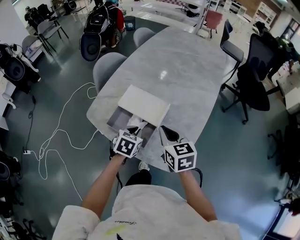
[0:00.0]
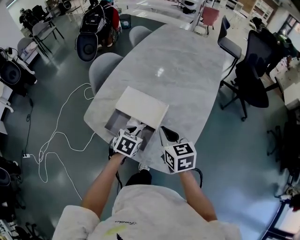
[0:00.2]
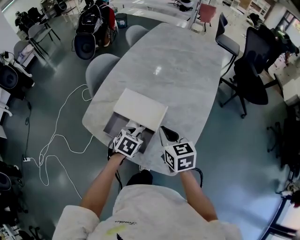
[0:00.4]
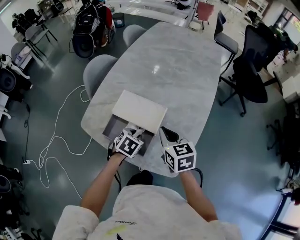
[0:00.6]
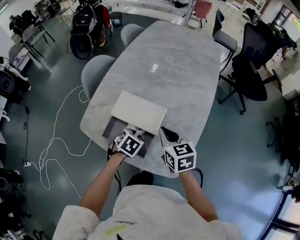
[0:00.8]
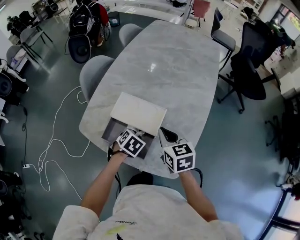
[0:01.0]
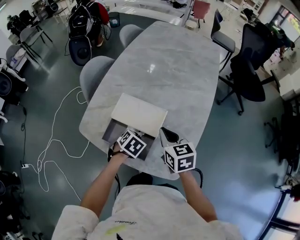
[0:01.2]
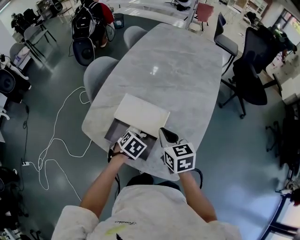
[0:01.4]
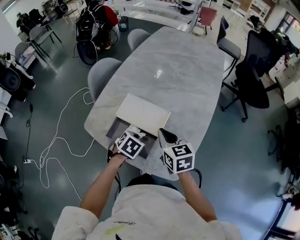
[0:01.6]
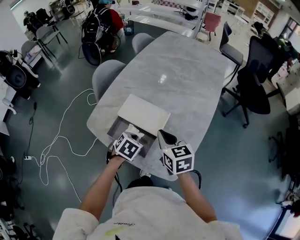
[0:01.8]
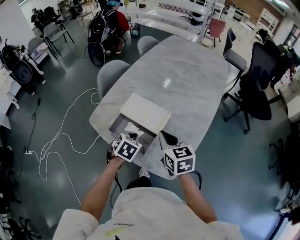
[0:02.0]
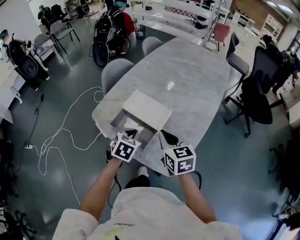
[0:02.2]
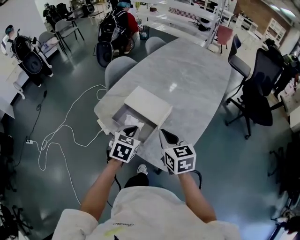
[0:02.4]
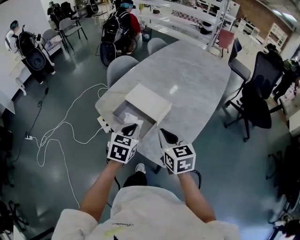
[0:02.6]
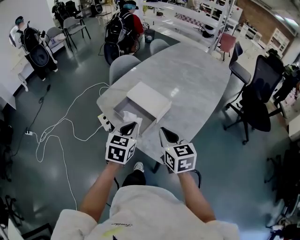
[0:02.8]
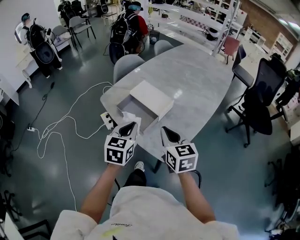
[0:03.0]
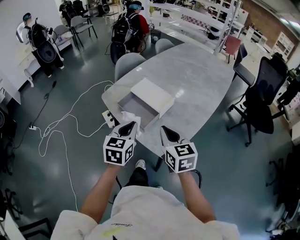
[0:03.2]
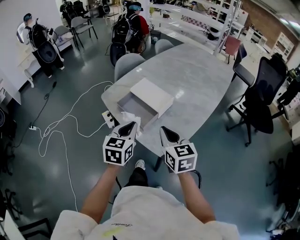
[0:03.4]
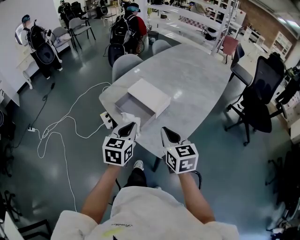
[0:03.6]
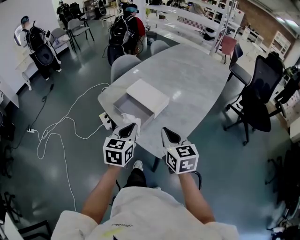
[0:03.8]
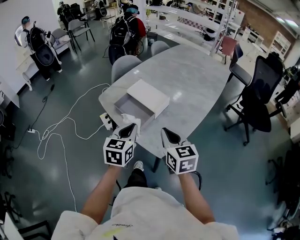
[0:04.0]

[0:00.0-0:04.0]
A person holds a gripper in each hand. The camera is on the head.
0:00.0 to 0:01.4: The left gripper shifts by about 5 cm, and swivels approximately 20 degrees, while the right gripper travels forward by approximately 5 cm.
0:01.4 to 0:02.6: The right gripper shifts about 15 cm backward and upward, while the left gripper moves upward and backward, some 20 cm, and angles its fingers upward, by some 30 degrees.
0:02.6 to 0:04.0: The two grippers go about 5 cm backward.

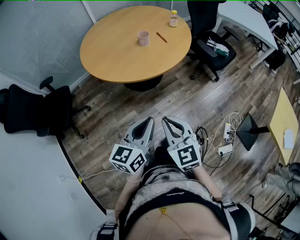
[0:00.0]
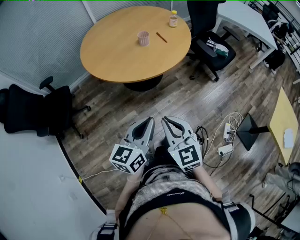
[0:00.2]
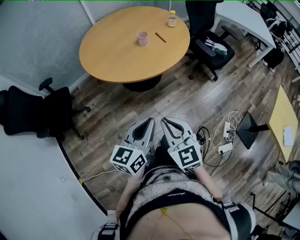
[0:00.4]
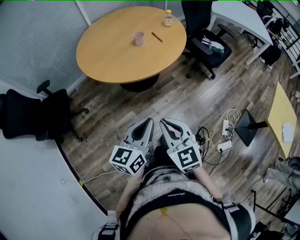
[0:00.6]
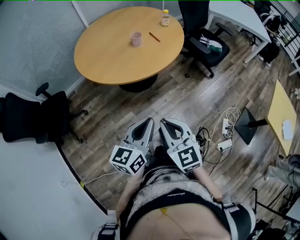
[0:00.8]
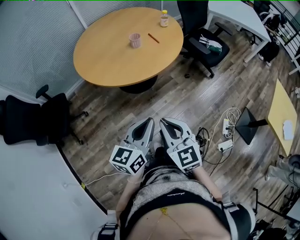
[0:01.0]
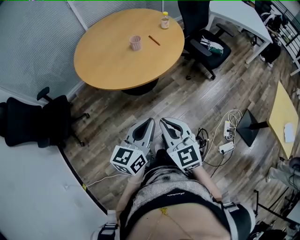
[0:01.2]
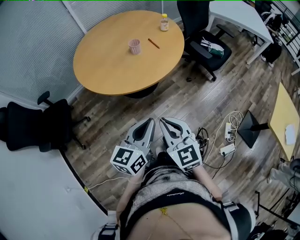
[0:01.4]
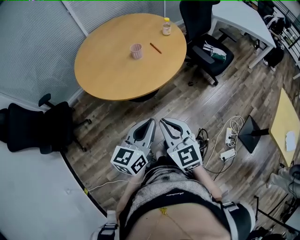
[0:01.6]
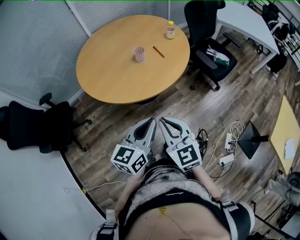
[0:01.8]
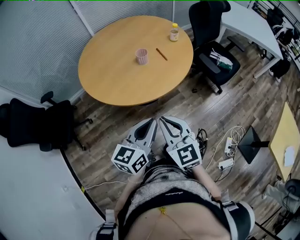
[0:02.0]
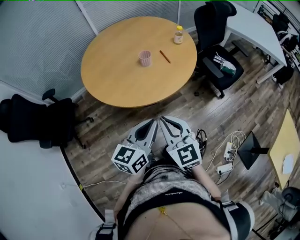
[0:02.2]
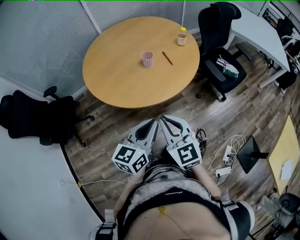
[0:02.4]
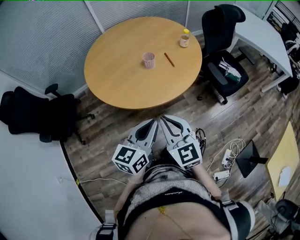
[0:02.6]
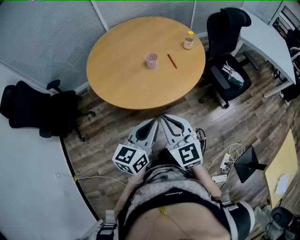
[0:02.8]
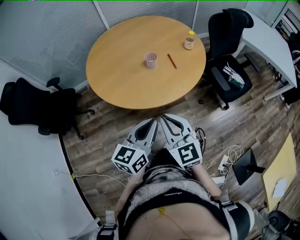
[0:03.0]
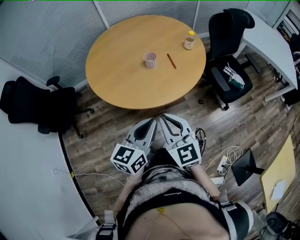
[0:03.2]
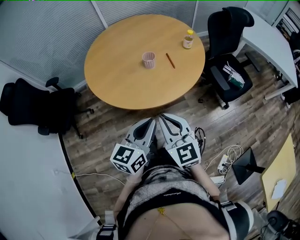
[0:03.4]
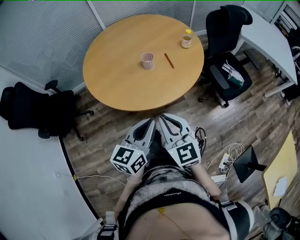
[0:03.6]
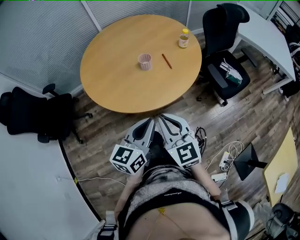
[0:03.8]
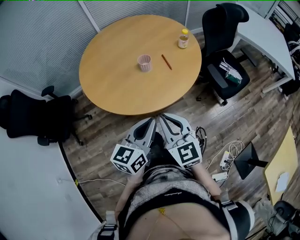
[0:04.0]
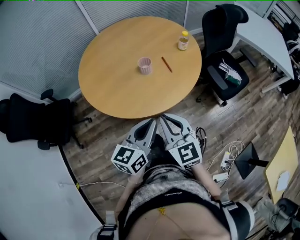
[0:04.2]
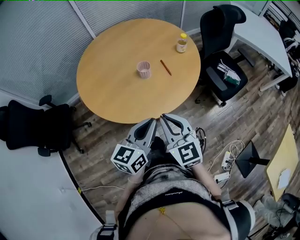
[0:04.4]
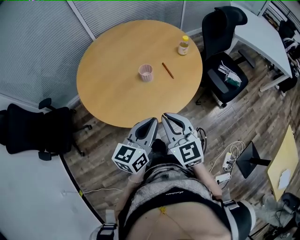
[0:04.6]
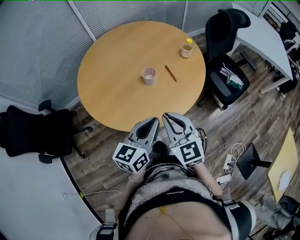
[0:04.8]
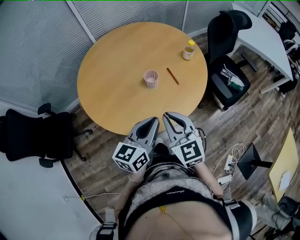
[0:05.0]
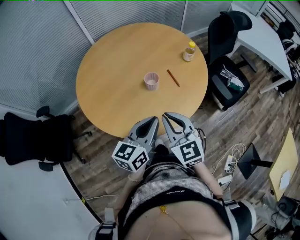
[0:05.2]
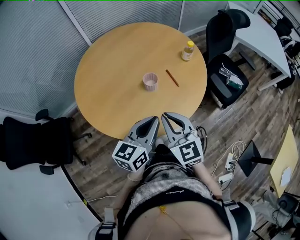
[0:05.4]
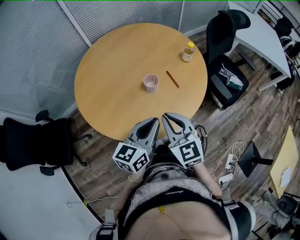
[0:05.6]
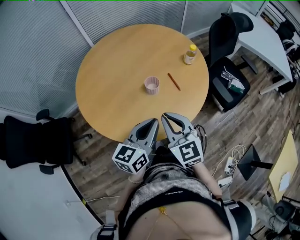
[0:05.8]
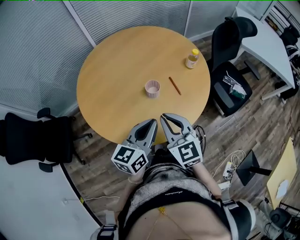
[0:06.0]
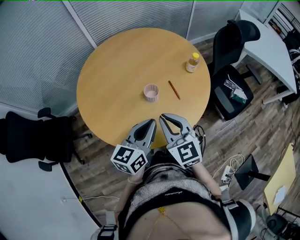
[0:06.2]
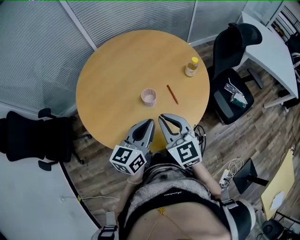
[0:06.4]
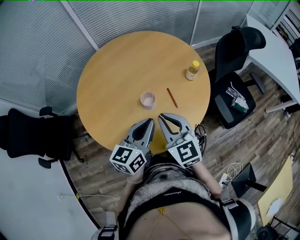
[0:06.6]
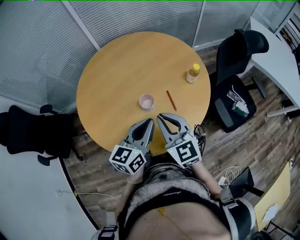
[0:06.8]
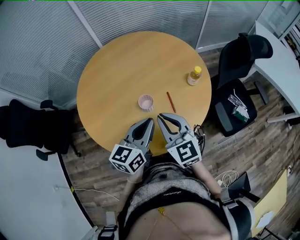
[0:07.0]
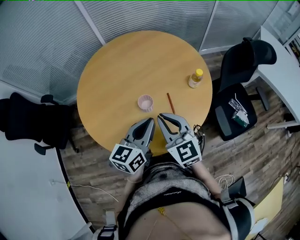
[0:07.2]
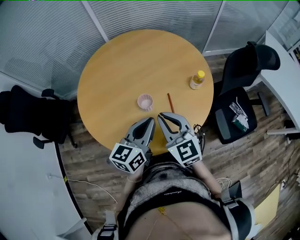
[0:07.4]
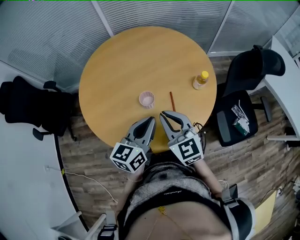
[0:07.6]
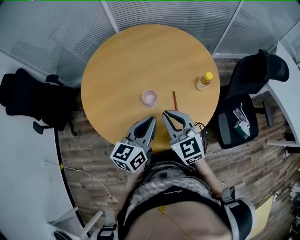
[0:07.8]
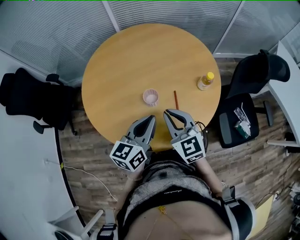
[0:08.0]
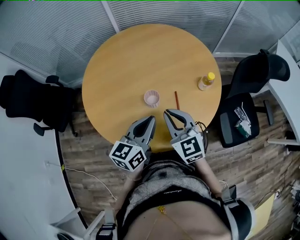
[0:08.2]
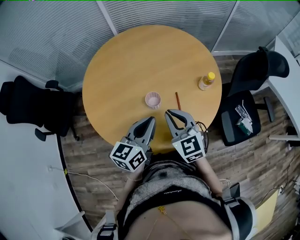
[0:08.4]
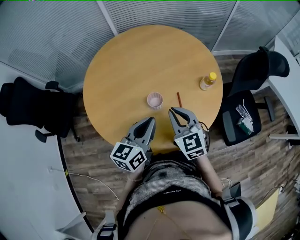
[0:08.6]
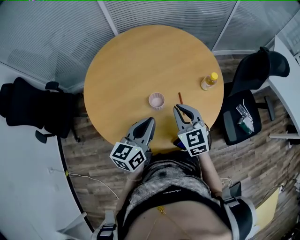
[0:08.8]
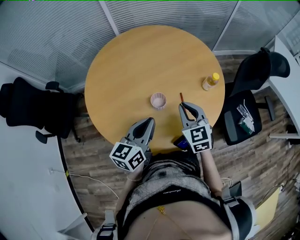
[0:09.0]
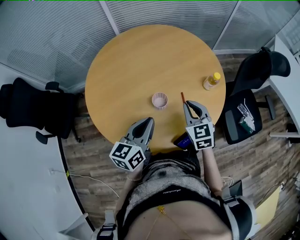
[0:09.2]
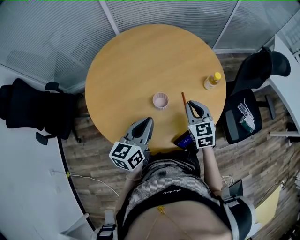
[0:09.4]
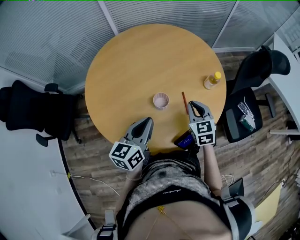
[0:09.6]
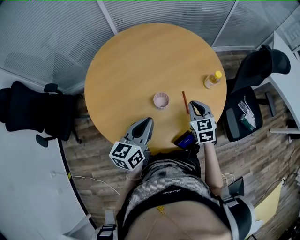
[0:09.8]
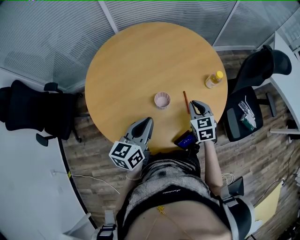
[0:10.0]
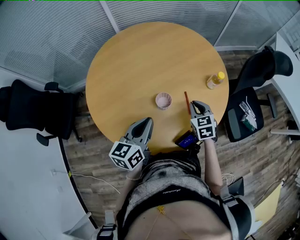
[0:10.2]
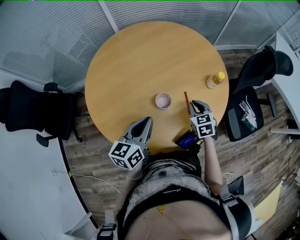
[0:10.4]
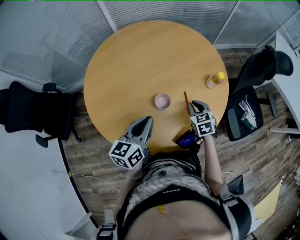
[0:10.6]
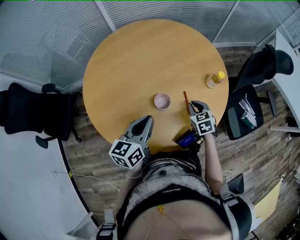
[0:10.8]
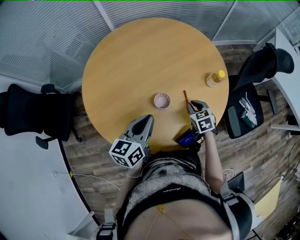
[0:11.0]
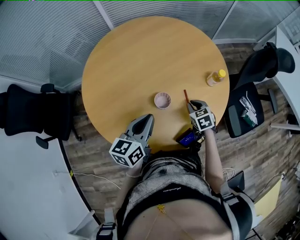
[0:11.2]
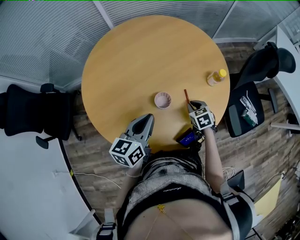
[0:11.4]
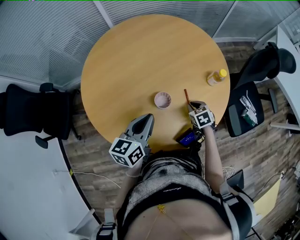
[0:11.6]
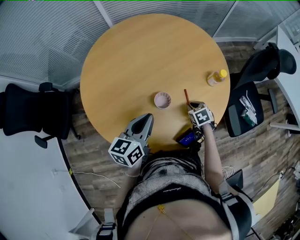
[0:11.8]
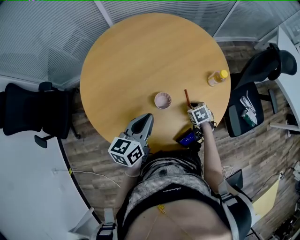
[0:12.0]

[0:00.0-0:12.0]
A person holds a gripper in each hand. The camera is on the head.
0:00.0 to 0:01.6: The two grippers go about 10 cm forward.
0:01.6 to 0:03.0: The grippers both shift forward by approximately 10 cm.
0:03.0 to 0:04.4: The grippers both shift forward by some 10 cm.
0:04.4 to 0:06.0: Both grippers move forward and to the left, approximately 15 cm.
0:06.0 to 0:07.6: Both grippers travel together forward and to the right, about 15 cm. The left gripper turns by about 20 degrees. Meanwhile the right gripper rotates approximately 20 degrees.
0:07.6 to 0:09.0: The left gripper shifts about 5 cm to the left; the right gripper heads forward and downward, covering roughly 10 cm.
0:09.0 to 0:10.4: The right gripper is displaced downward by some 10 cm. Meanwhile the left gripper shifts by roughly 5 cm.
0:10.4 to 0:12.0: The right gripper travels downward by some 15 cm, and turns by approximately 30 degrees.

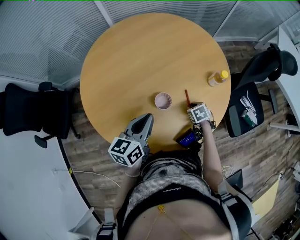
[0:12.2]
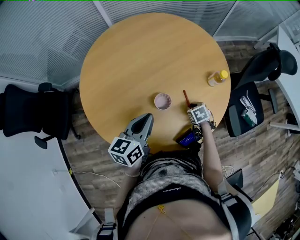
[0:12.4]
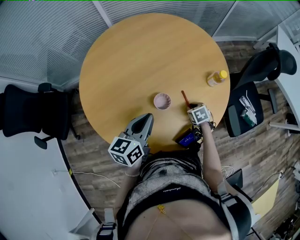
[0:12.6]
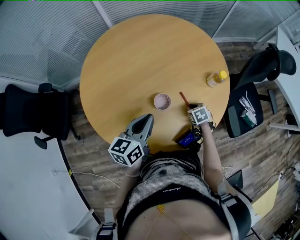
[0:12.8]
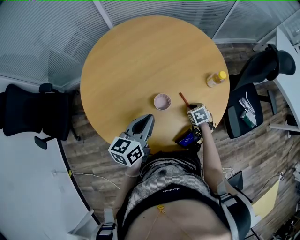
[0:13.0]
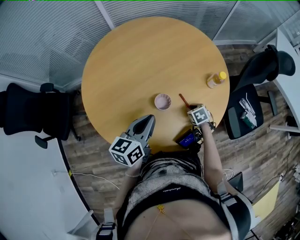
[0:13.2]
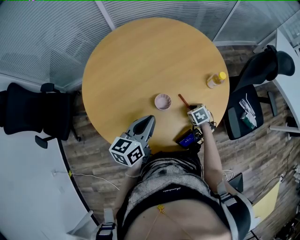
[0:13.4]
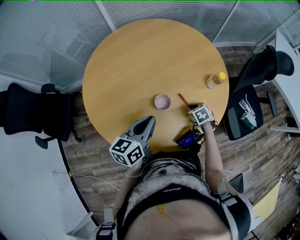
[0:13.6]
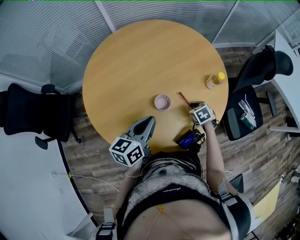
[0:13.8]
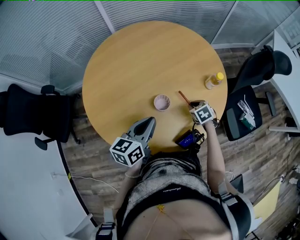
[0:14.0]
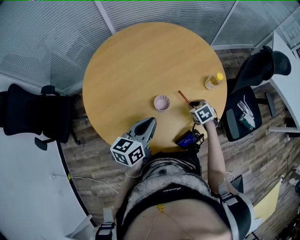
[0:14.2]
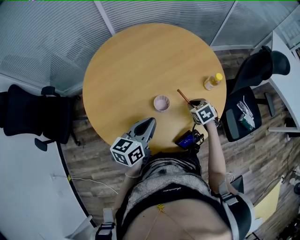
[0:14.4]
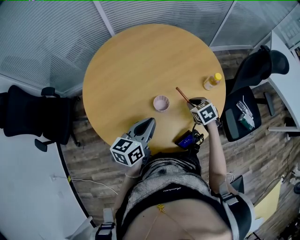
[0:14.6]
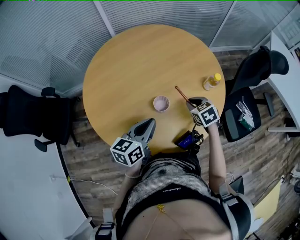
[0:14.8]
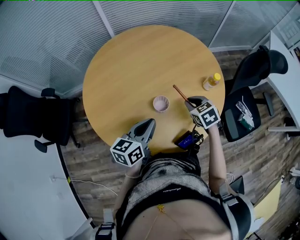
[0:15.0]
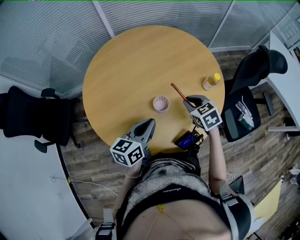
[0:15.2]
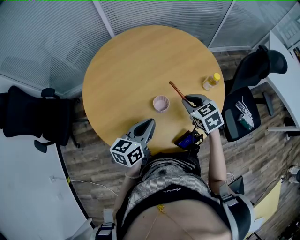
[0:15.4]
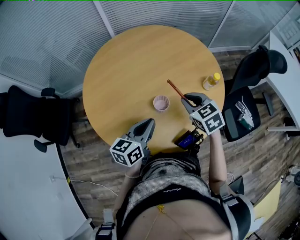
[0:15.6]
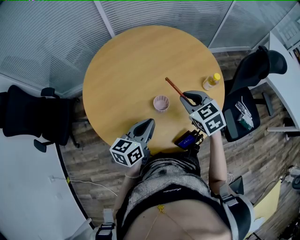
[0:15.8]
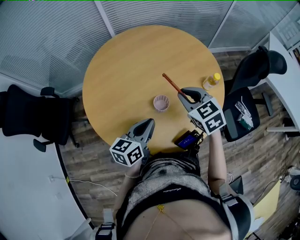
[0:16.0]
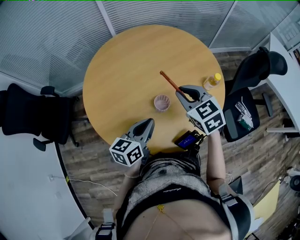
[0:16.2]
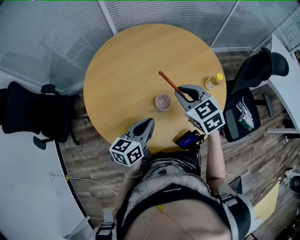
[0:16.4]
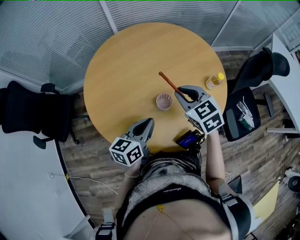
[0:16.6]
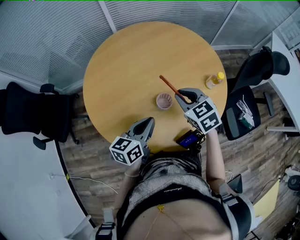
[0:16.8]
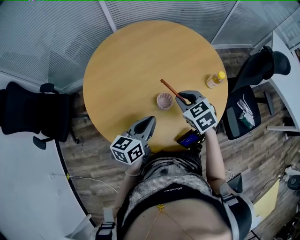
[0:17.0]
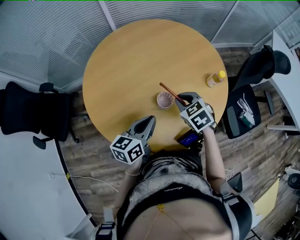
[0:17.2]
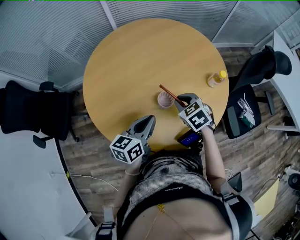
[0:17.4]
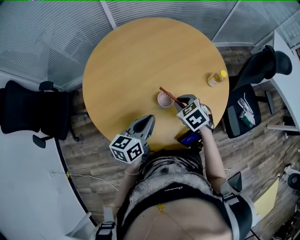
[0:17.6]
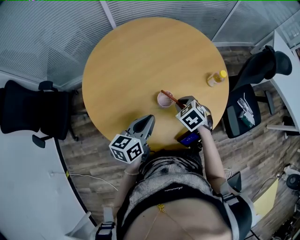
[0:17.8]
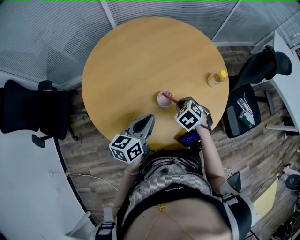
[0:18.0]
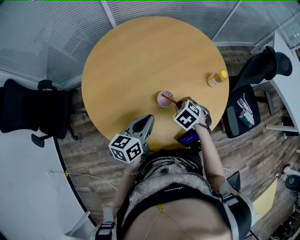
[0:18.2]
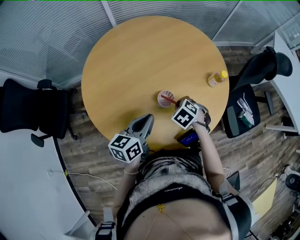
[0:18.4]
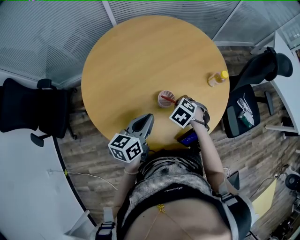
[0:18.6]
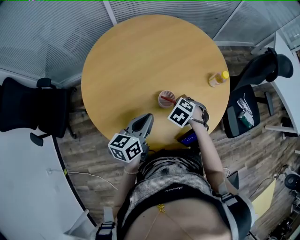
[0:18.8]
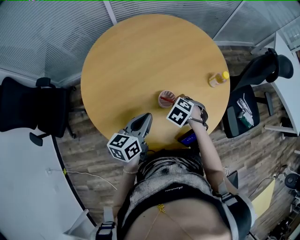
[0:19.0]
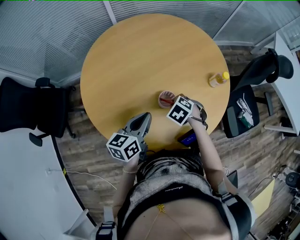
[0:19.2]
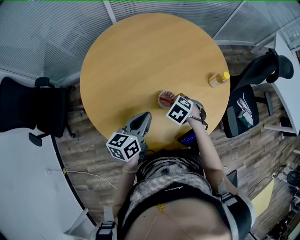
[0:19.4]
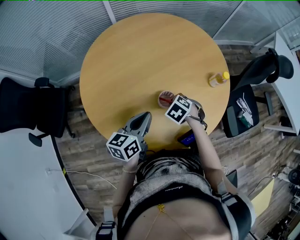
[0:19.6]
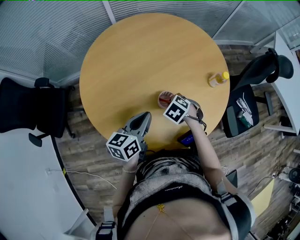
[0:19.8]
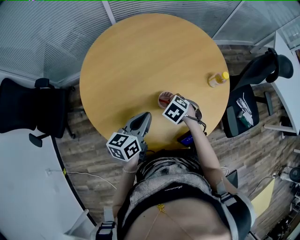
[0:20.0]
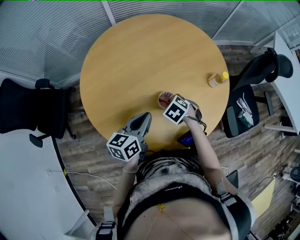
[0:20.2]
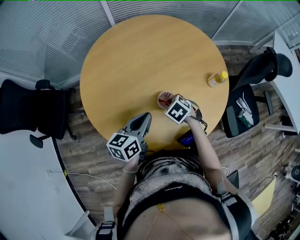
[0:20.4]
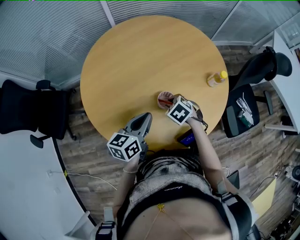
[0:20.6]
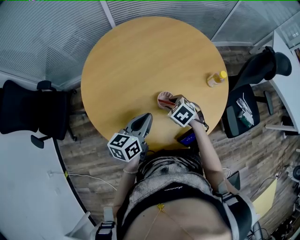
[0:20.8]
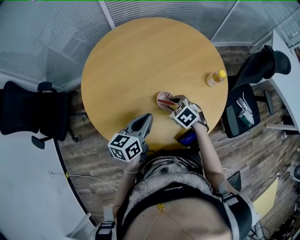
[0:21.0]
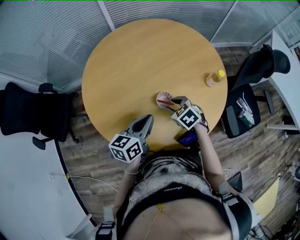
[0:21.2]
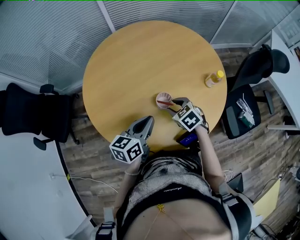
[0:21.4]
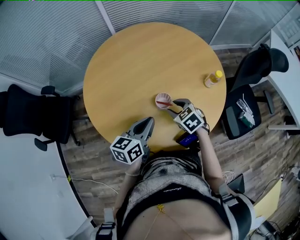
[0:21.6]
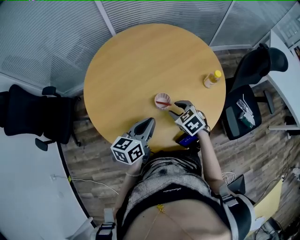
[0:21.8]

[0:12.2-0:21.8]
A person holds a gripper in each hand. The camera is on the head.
0:12.2 to 0:13.8: The grippers stay close to where they were, moving slightly.
0:13.8 to 0:15.4: The right gripper moves upward, approximately 20 cm, and turns by about 20 degrees.
0:15.4 to 0:17.0: The right gripper travels upward and back again, approximately 10 cm each way.
0:17.0 to 0:18.6: The right gripper shifts about 10 cm downward, and rotates some 30 degrees.
0:18.6 to 0:20.2: The grippers move only a little.
0:20.2 to 0:21.8: The right gripper moves upward, some 5 cm, turns by about 20 degrees, and opens. The left gripper ends up about 5 cm from where it was.
